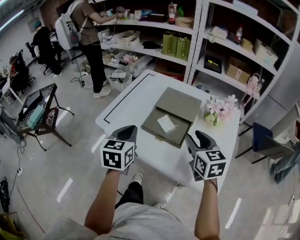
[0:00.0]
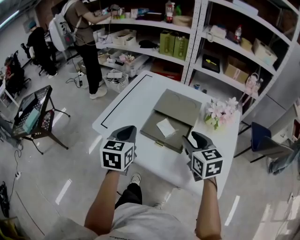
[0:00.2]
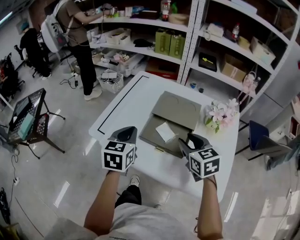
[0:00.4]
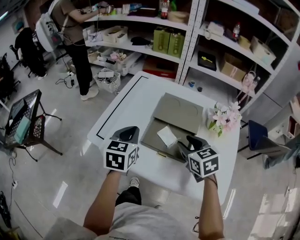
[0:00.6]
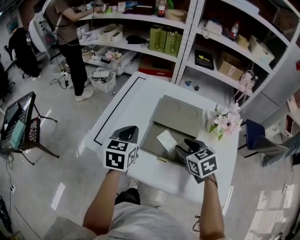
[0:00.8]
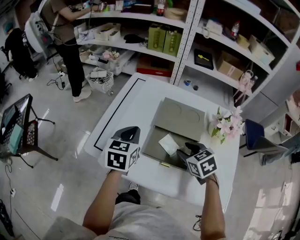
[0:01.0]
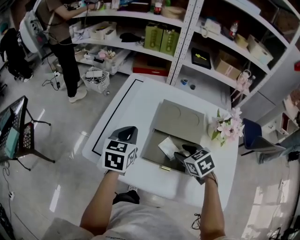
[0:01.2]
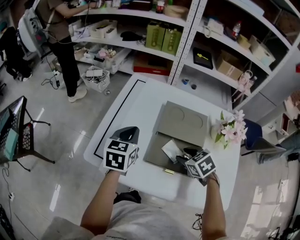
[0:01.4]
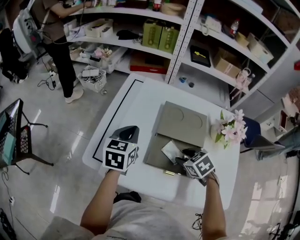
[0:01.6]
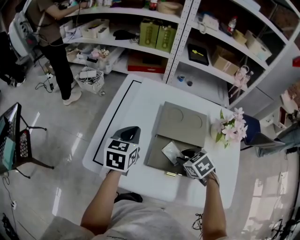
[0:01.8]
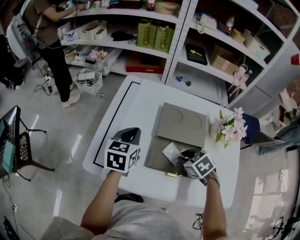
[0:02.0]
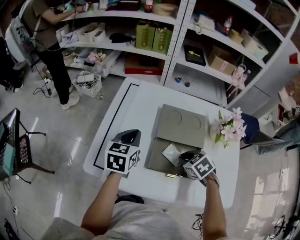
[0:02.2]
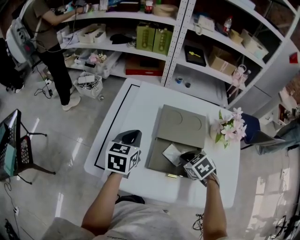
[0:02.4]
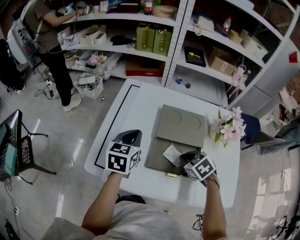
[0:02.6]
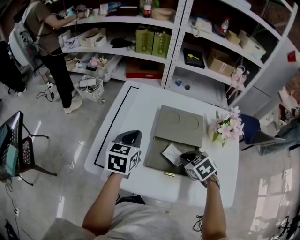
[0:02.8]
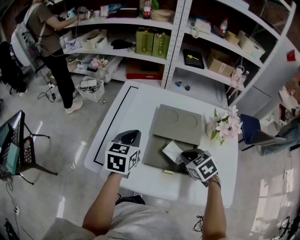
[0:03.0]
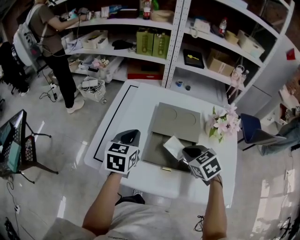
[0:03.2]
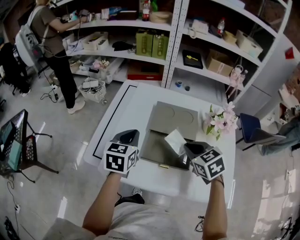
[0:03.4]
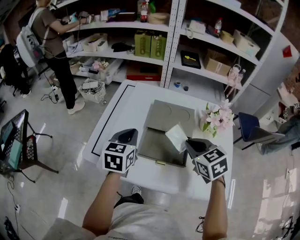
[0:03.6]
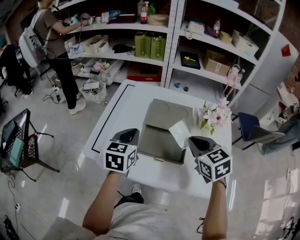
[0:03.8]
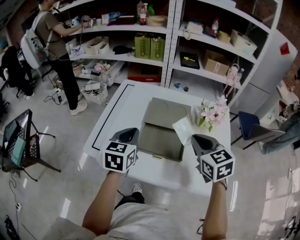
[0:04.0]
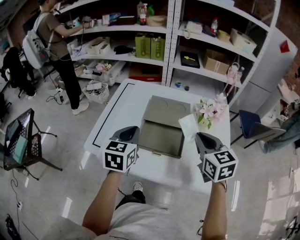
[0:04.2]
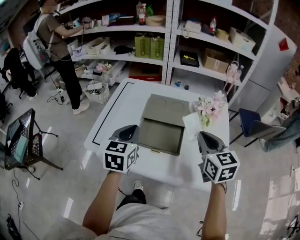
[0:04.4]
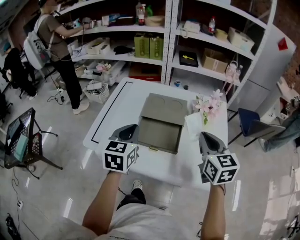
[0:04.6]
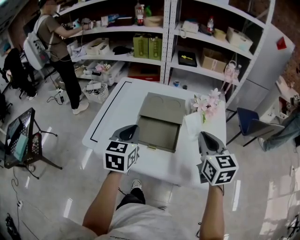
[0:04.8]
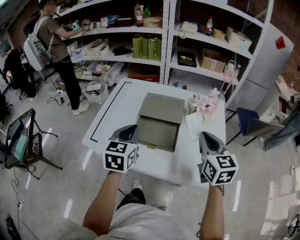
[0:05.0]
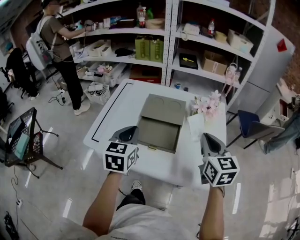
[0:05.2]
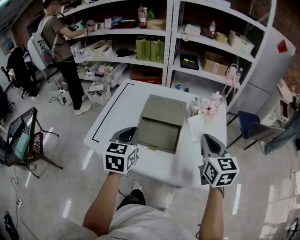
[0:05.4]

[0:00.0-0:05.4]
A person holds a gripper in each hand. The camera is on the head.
0.0 to 1.4 s: The right gripper shifts roughly 20 cm downward, forward and to the left, and tips its fingers downward by roughly 40 degrees. The left gripper is displaced forward by roughly 20 cm.
1.4 to 2.8 s: The right gripper closes.
2.8 to 4.0 s: The left gripper travels backward by some 10 cm; the right gripper moves upward and to the right, approximately 20 cm, and points its fingers some 30 degrees further upward.
4.0 to 5.4 s: The right gripper travels to the right and backward by about 10 cm. Meanwhile the left gripper travels backward by about 5 cm.

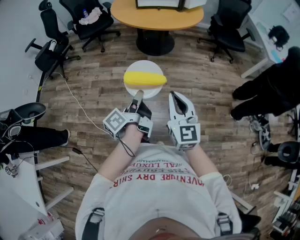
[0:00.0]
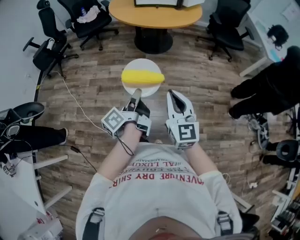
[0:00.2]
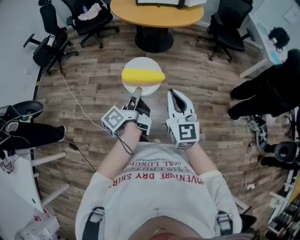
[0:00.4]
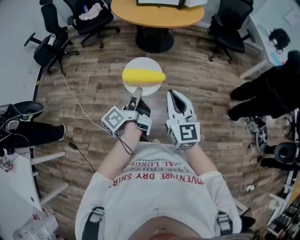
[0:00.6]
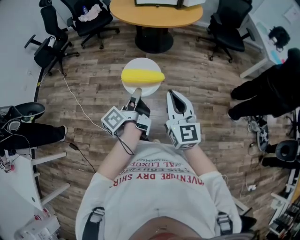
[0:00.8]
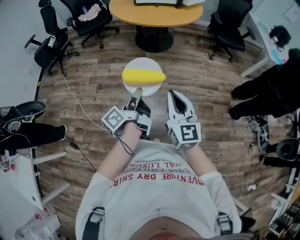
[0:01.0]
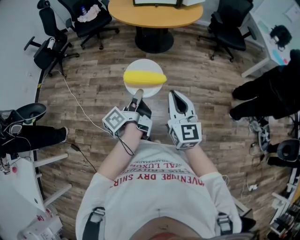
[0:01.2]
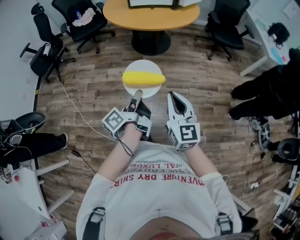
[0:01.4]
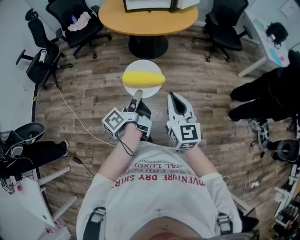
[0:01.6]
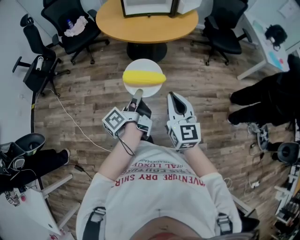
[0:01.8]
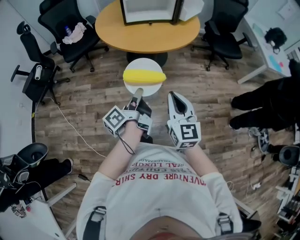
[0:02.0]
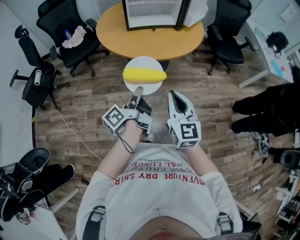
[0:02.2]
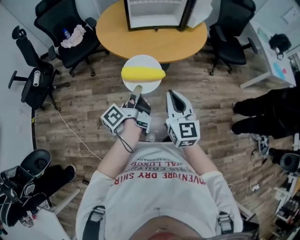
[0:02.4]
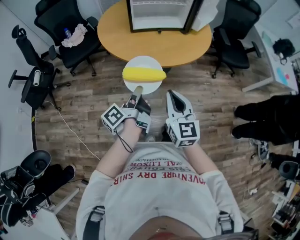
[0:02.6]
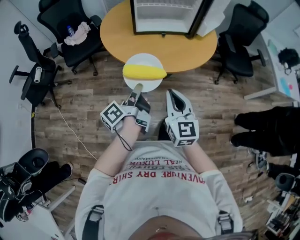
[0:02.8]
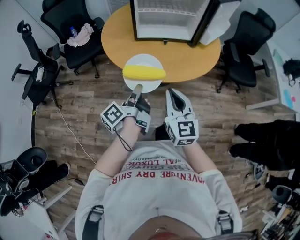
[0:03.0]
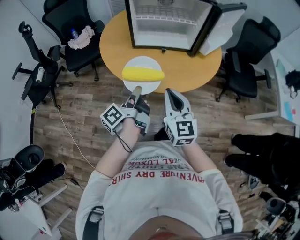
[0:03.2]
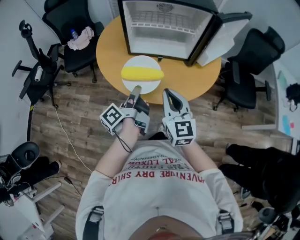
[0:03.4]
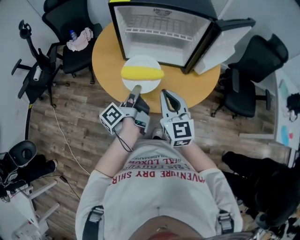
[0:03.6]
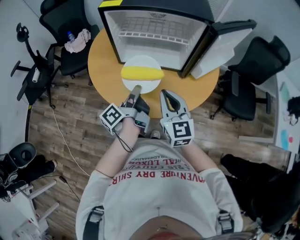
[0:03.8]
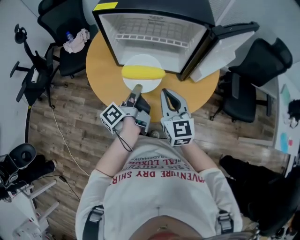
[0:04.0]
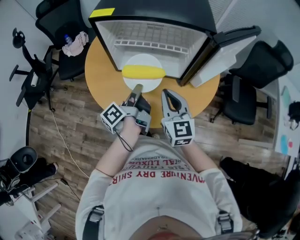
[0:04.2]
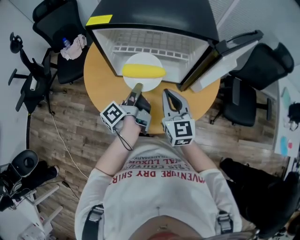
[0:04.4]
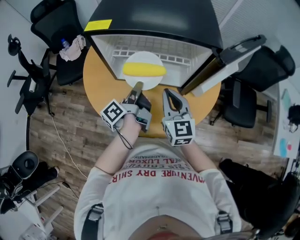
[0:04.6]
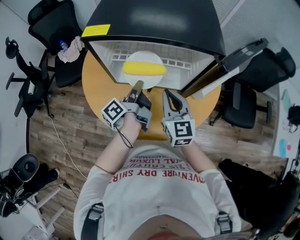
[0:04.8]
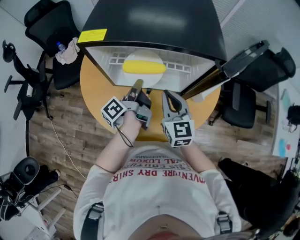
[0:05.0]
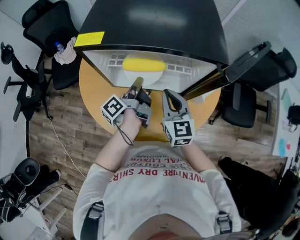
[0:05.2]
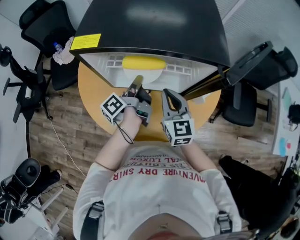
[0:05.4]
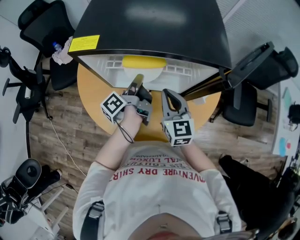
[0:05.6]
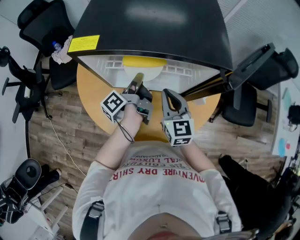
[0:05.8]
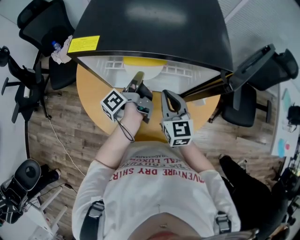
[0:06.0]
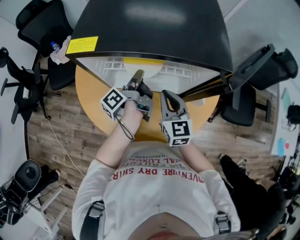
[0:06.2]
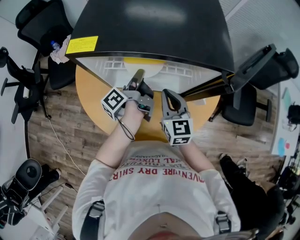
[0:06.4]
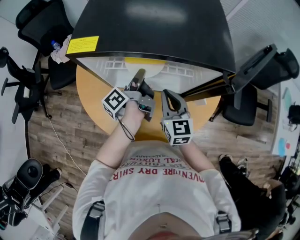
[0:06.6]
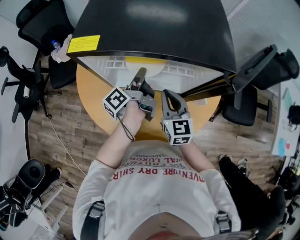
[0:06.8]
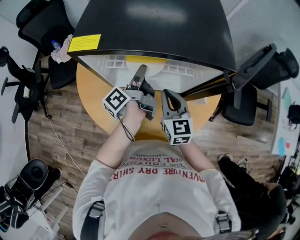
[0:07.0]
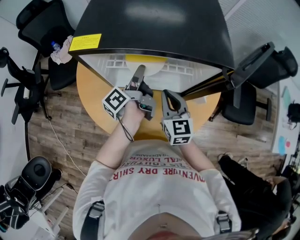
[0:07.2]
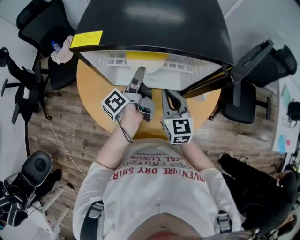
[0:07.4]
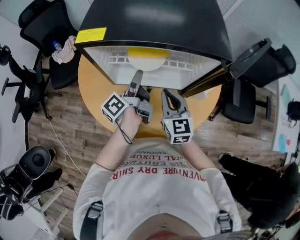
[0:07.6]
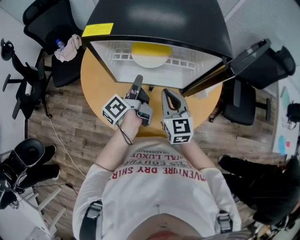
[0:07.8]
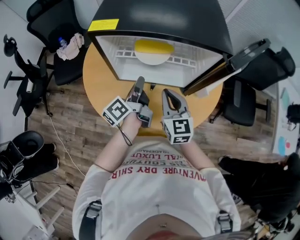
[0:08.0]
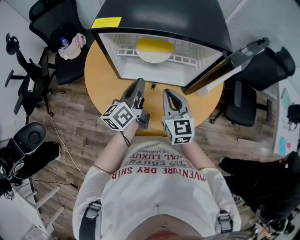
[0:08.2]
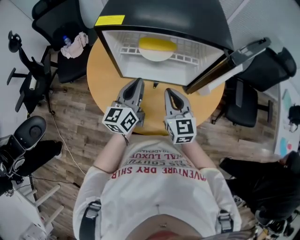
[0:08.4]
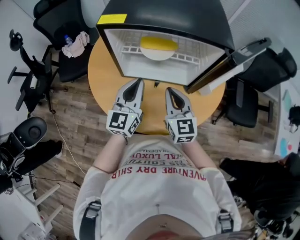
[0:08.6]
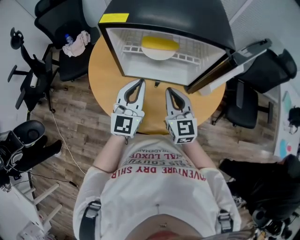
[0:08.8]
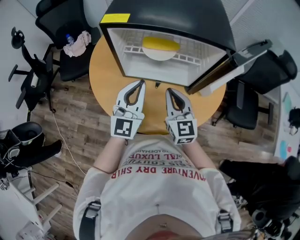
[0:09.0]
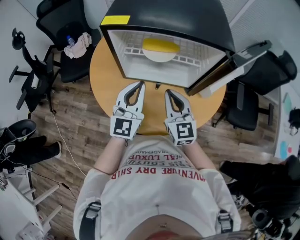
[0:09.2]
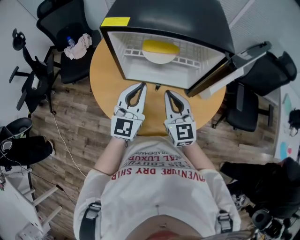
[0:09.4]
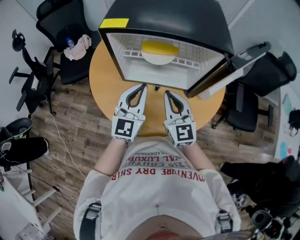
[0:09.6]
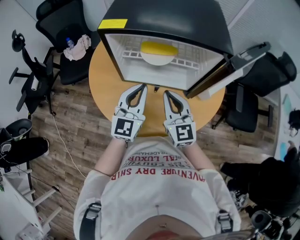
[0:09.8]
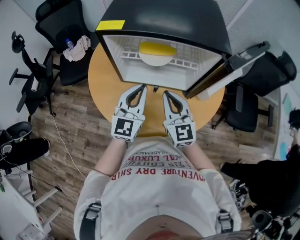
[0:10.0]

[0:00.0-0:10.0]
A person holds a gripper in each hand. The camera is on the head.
0.0 to 1.4 s: The right gripper changes place by approximately 5 cm.
1.4 to 2.8 s: The right gripper moves about 40 cm.
2.8 to 4.2 s: The right gripper ends up about 35 cm from where it was.
4.2 to 5.8 s: The right gripper moves approximately 15 cm.
7.2 to 8.6 s: The right gripper changes place by roughly 10 cm.

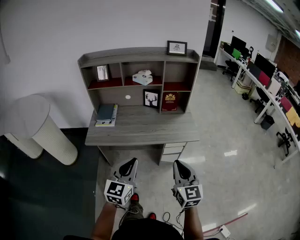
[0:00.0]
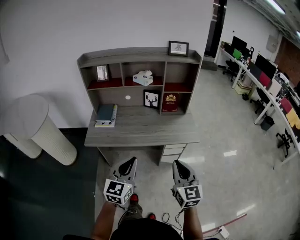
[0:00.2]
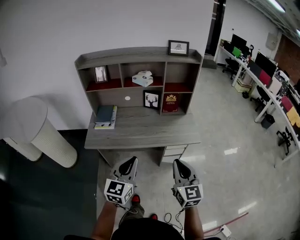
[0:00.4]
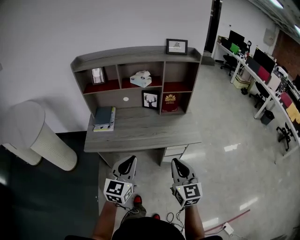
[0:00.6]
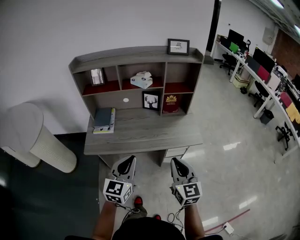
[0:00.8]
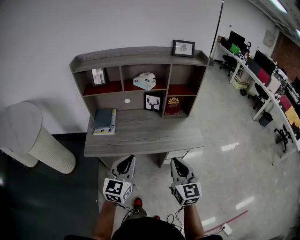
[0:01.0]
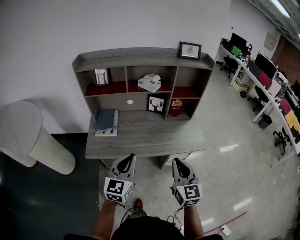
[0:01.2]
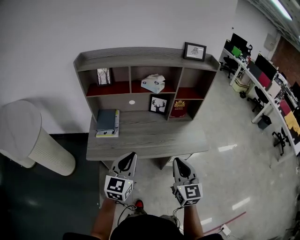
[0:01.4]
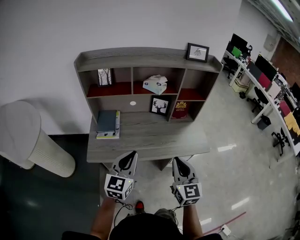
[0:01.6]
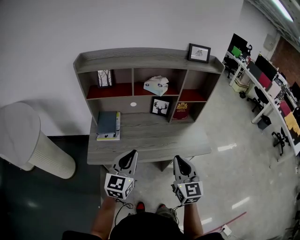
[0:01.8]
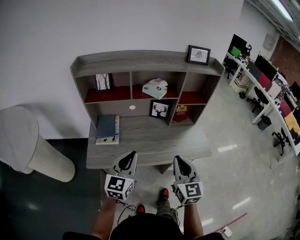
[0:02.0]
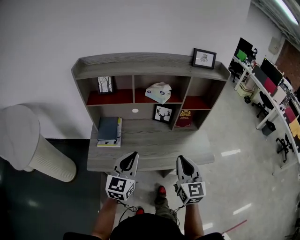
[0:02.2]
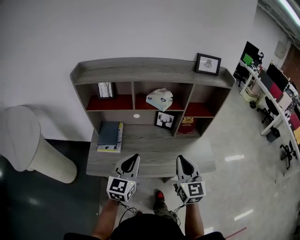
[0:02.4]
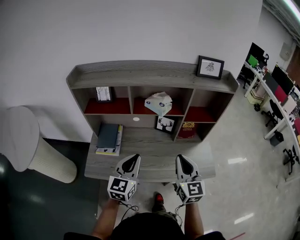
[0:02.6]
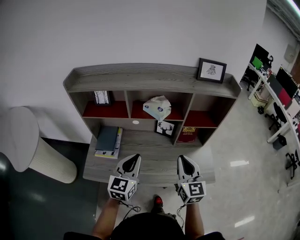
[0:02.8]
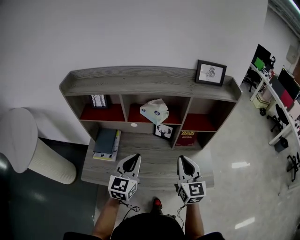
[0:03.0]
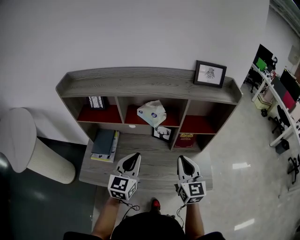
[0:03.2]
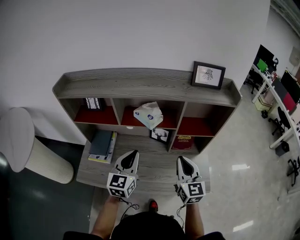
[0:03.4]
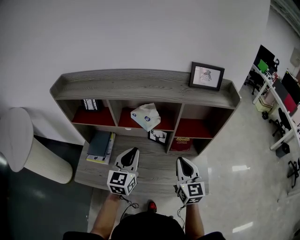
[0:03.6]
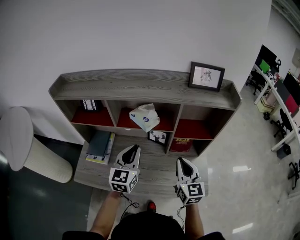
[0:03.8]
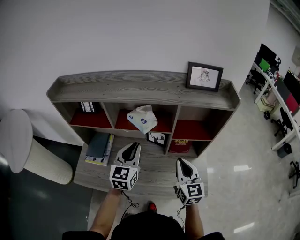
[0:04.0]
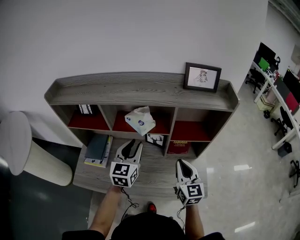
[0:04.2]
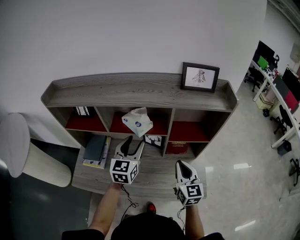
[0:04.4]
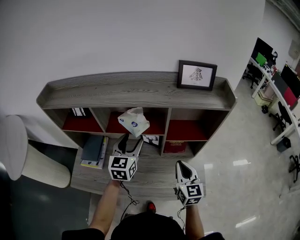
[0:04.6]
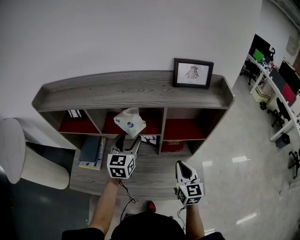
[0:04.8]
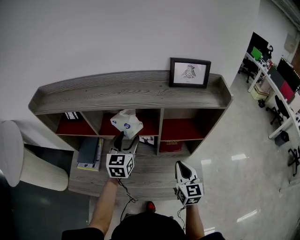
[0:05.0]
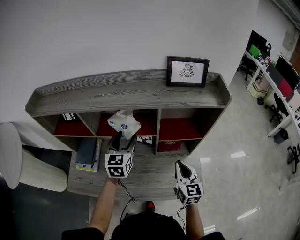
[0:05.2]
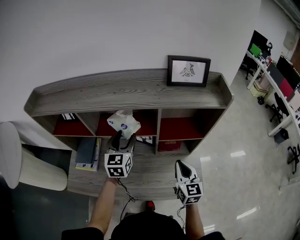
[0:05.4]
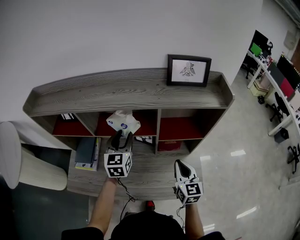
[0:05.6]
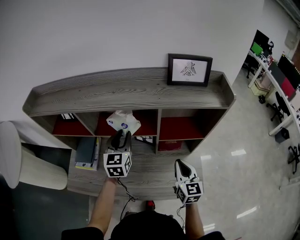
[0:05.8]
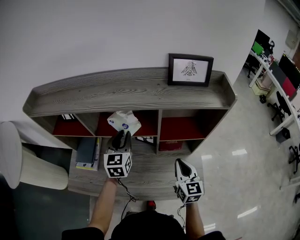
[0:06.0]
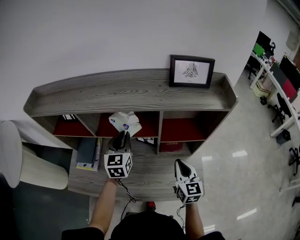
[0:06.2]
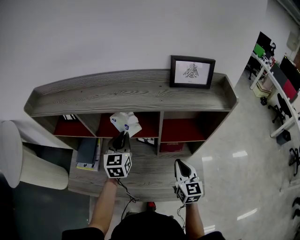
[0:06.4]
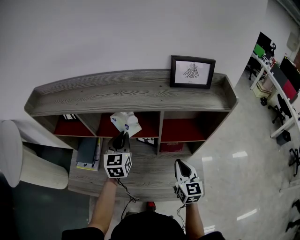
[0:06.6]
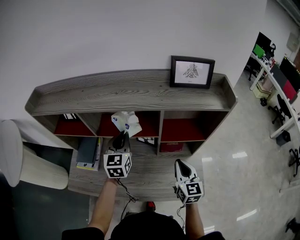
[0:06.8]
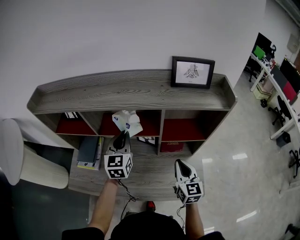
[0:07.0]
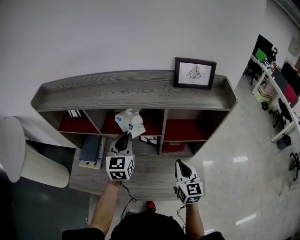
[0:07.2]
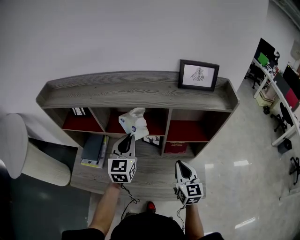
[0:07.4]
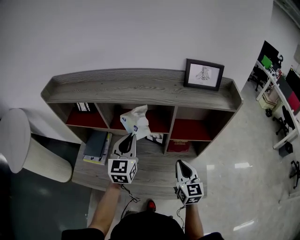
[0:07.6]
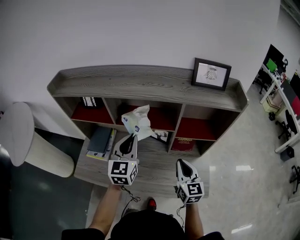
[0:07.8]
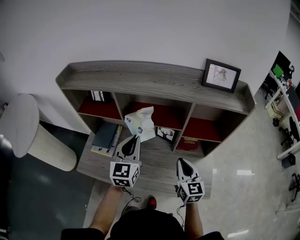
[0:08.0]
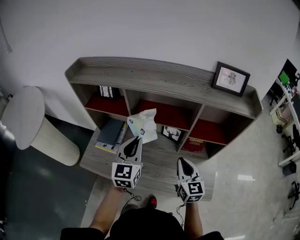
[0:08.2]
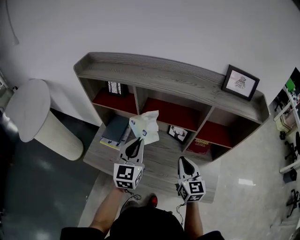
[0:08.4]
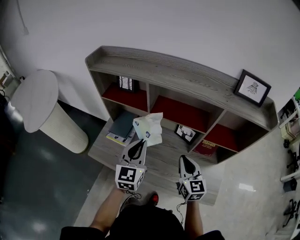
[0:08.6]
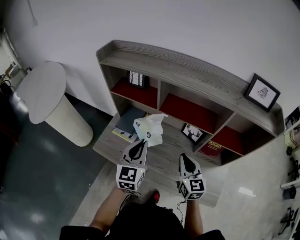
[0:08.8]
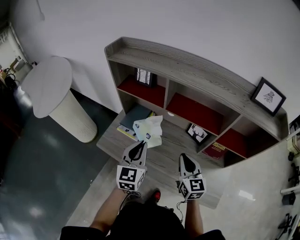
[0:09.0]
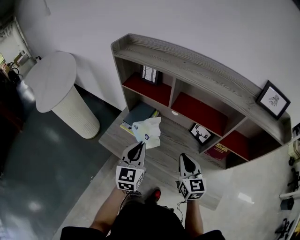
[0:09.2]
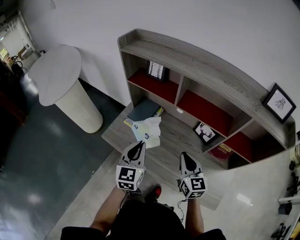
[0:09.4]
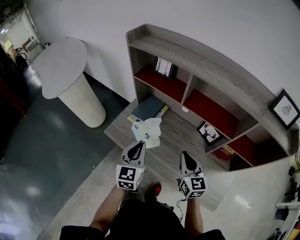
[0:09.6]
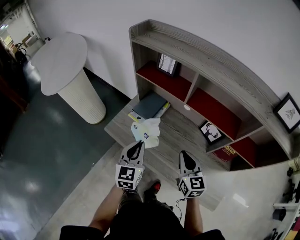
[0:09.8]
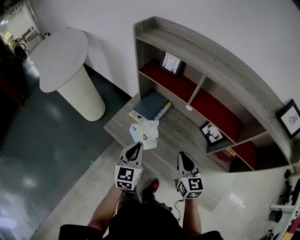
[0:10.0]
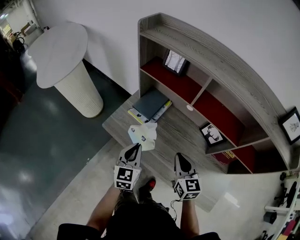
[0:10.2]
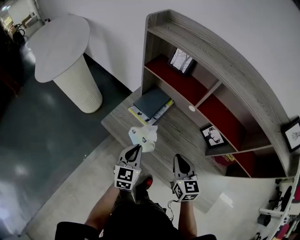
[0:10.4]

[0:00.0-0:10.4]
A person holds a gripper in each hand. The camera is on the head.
0.0 to 1.4 s: The two grippers go some 20 cm forward and to the left.
1.4 to 3.0 s: The two grippers go roughly 25 cm forward.
3.0 to 4.4 s: The left gripper goes some 15 cm forward and to the right, and opens its fingers. The right gripper is displaced to the right, forward and downward by some 10 cm.
4.4 to 6.0 s: The right gripper changes place by about 5 cm, while the left gripper moves forward, some 5 cm, and closes its fingers.
6.0 to 7.4 s: The left gripper changes place by approximately 5 cm.
7.4 to 9.0 s: The right gripper travels to the left by some 20 cm, and rotates about 20 degrees. The left gripper is displaced to the left and backward by approximately 20 cm.
9.0 to 10.4 s: The right gripper is displaced to the left and downward by roughly 10 cm. The left gripper shifts approximately 15 cm downward and to the left.
